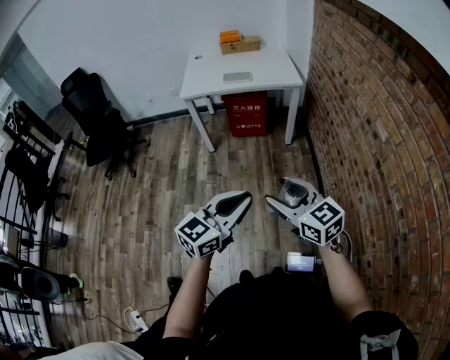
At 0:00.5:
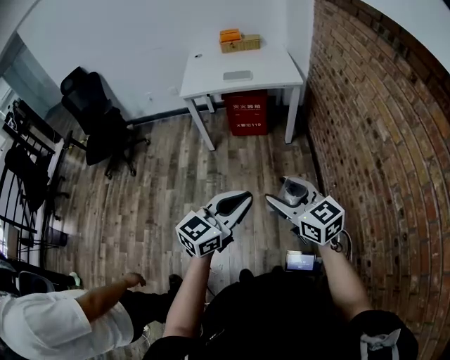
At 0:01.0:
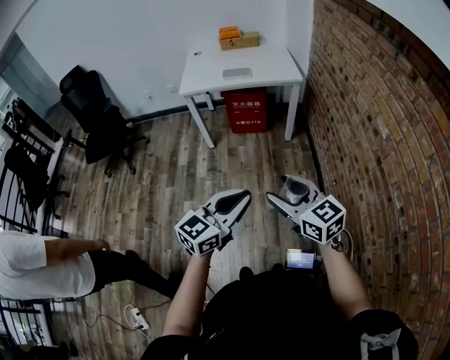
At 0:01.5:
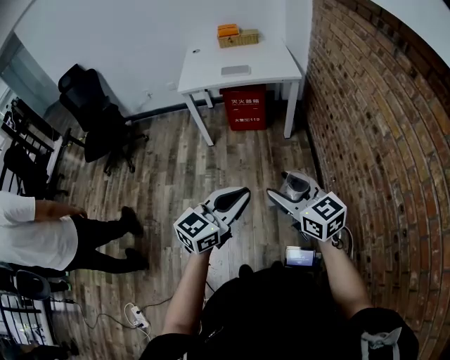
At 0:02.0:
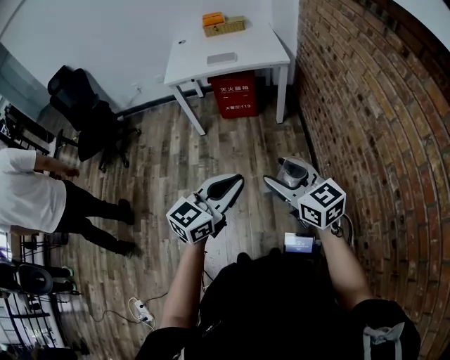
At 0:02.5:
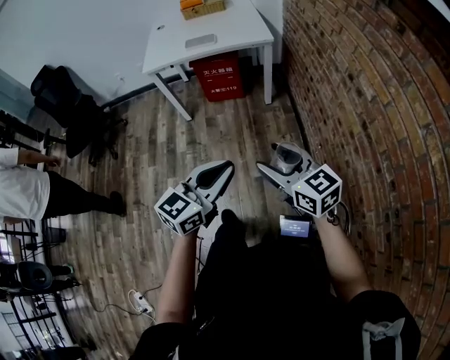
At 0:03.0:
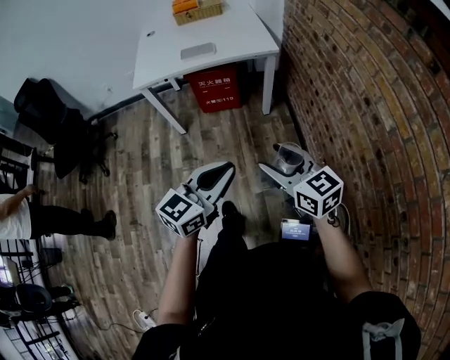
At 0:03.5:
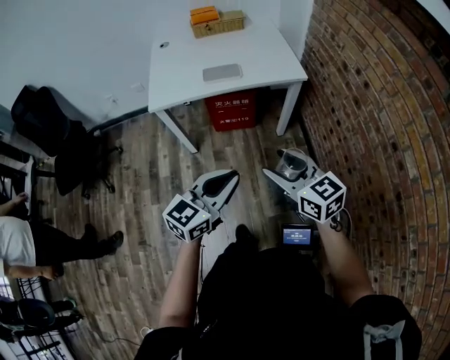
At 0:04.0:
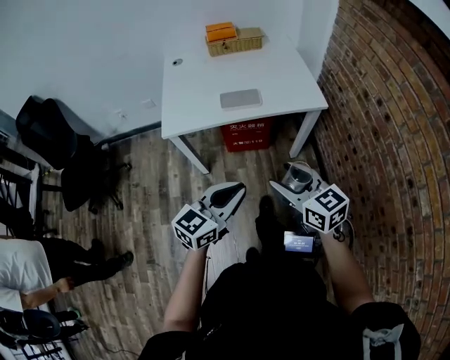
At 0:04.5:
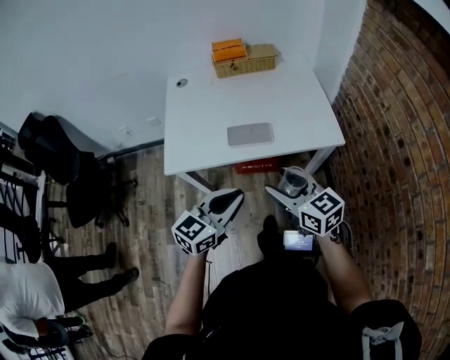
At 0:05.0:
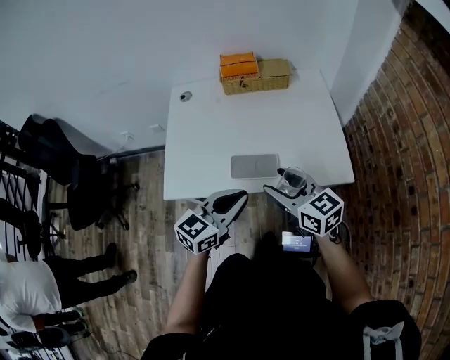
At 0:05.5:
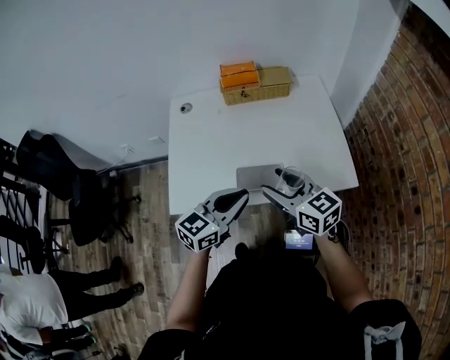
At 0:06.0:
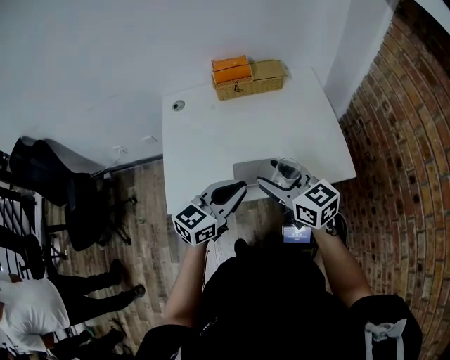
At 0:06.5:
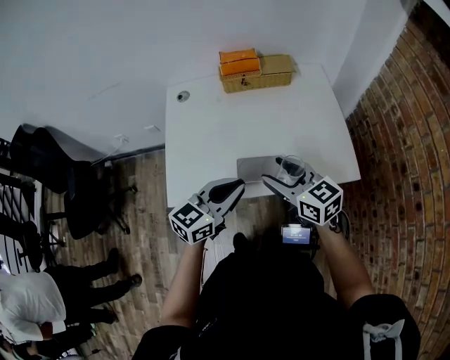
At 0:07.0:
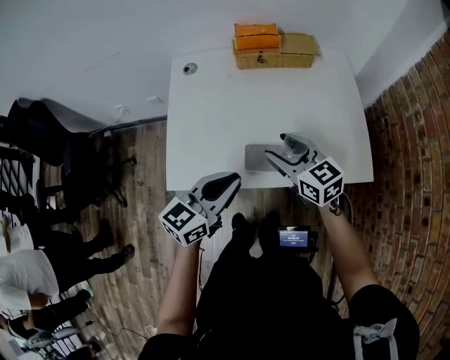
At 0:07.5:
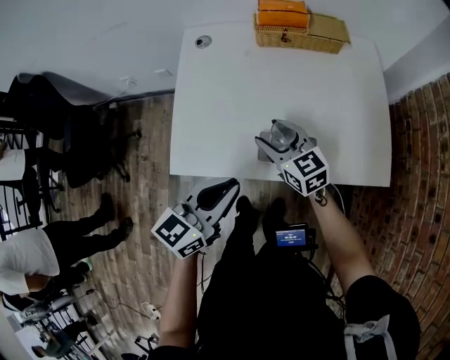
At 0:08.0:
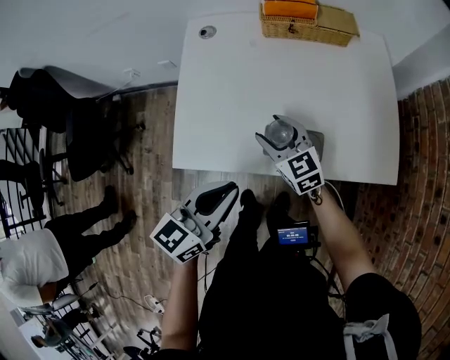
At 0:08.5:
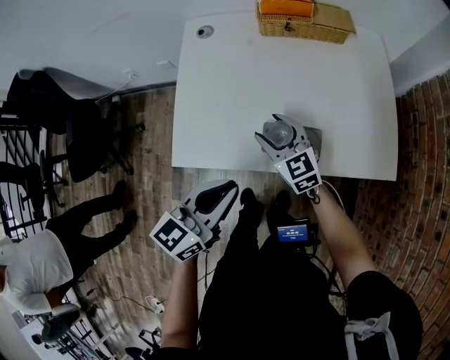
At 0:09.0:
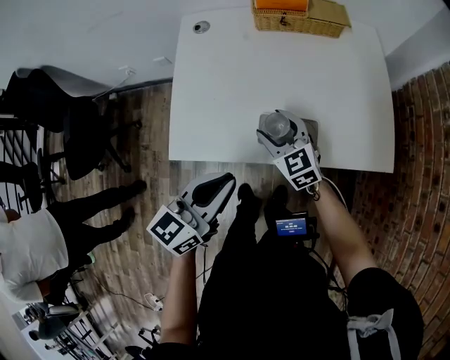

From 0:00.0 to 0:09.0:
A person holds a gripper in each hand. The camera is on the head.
From 0:00.0 to 0:02.0: There are only small adjustments of the grippers.
From 0:02.0 to 0:04.5: The two grippers travel together, forward, about 60 cm.
From 0:04.5 to 0:07.0: Both grippers travel together forward, roughly 20 cm.
From 0:07.0 to 0:09.0: The left gripper ends up some 5 cm from where it was; the right gripper travels downward and to the left by roughly 10 cm, and rotates some 20 degrees.

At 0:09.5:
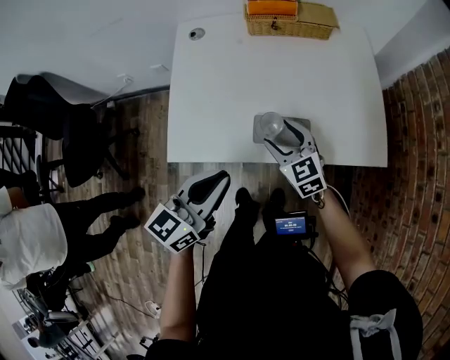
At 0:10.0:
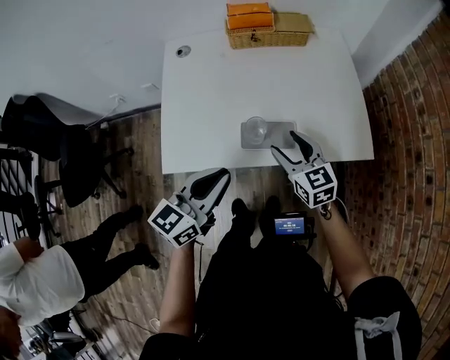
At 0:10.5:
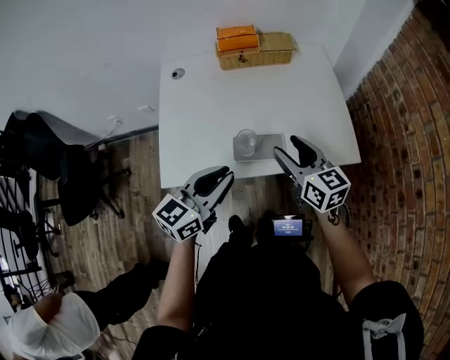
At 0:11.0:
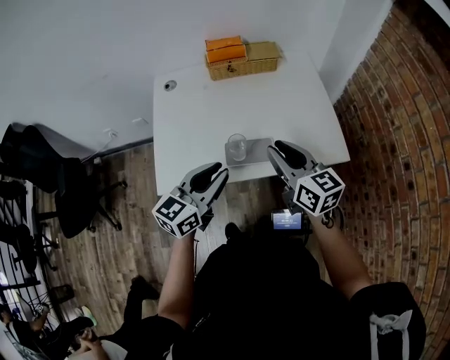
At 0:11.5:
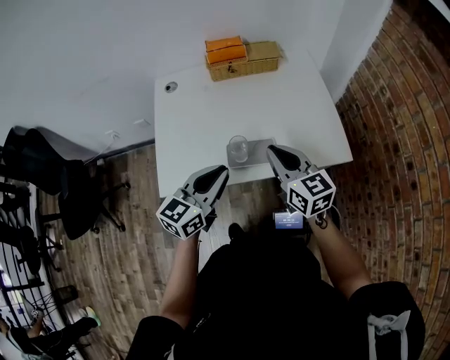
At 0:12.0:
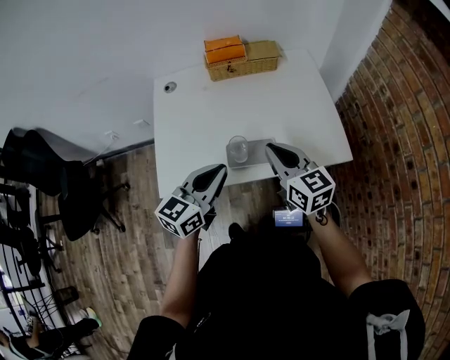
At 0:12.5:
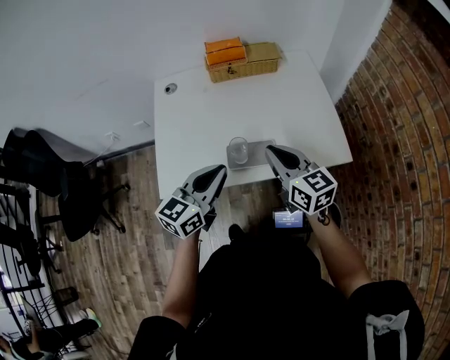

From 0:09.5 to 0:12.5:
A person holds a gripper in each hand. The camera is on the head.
From 0:09.5 to 0:11.0: The right gripper moves upward and to the right, some 20 cm, swivels roughly 30 degrees, and closes up. The left gripper moves some 5 cm.
From 0:11.0 to 0:12.5: The right gripper closes.

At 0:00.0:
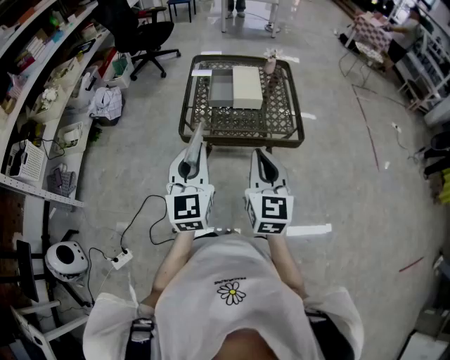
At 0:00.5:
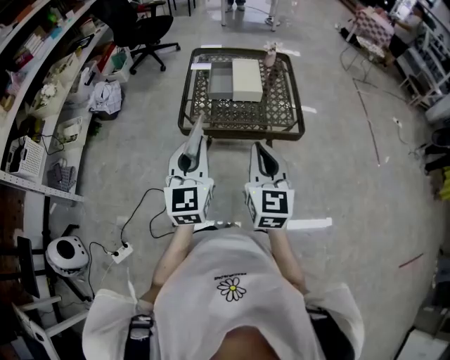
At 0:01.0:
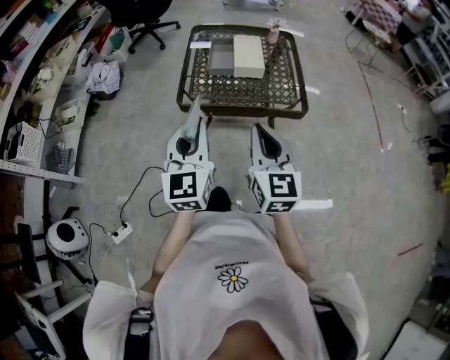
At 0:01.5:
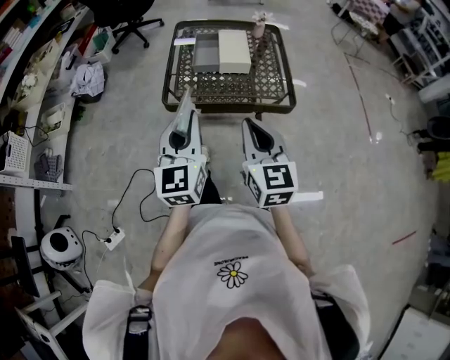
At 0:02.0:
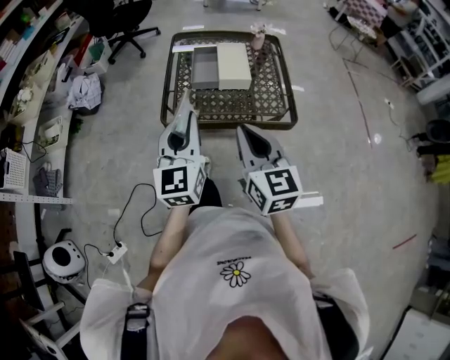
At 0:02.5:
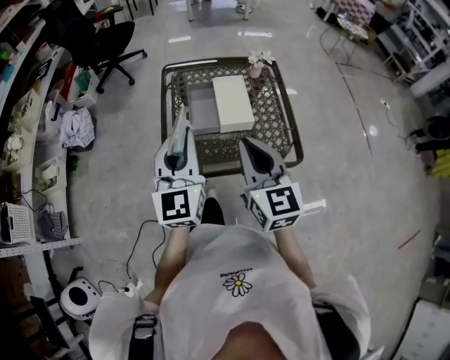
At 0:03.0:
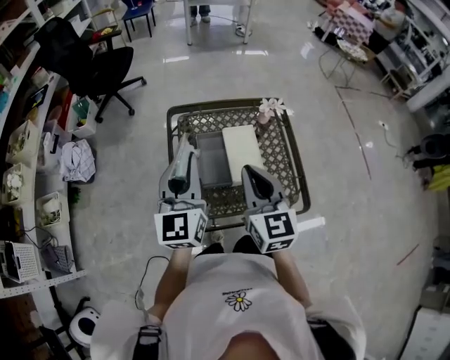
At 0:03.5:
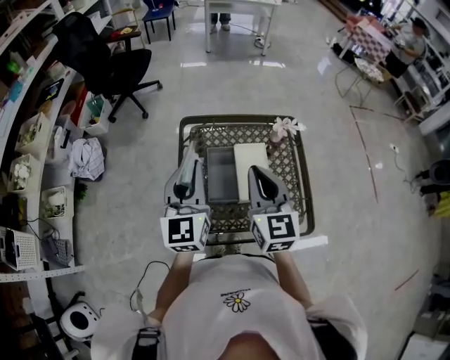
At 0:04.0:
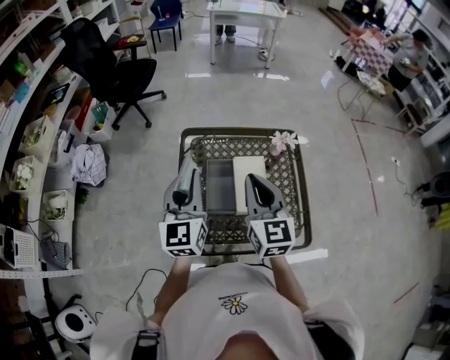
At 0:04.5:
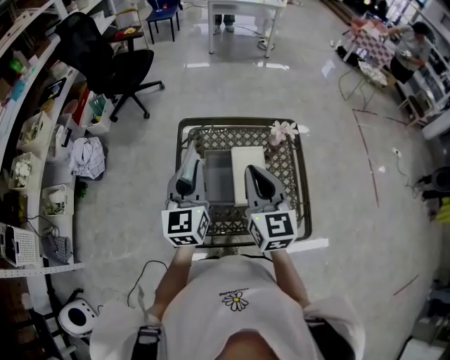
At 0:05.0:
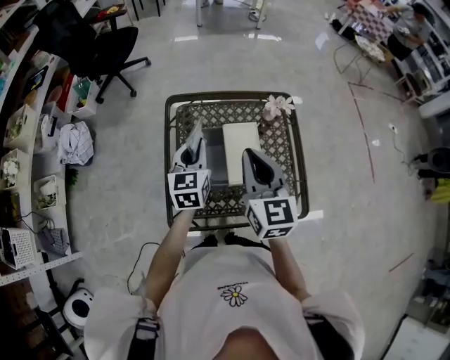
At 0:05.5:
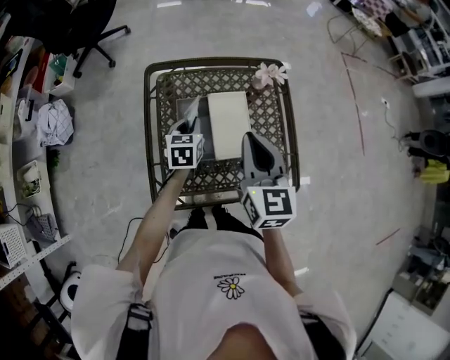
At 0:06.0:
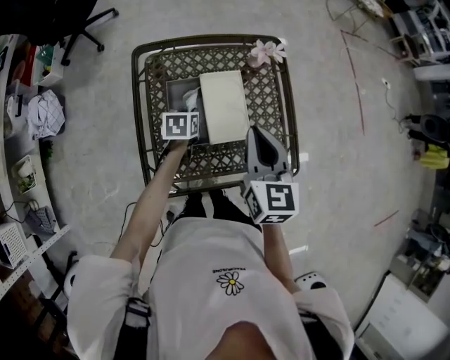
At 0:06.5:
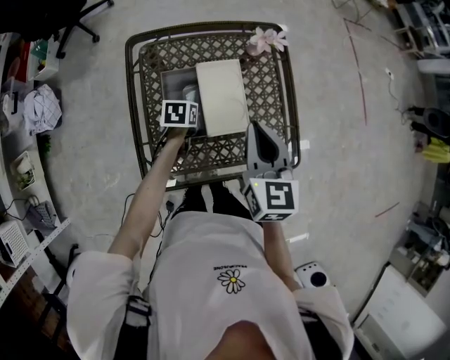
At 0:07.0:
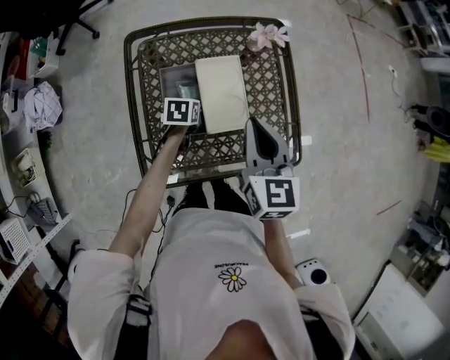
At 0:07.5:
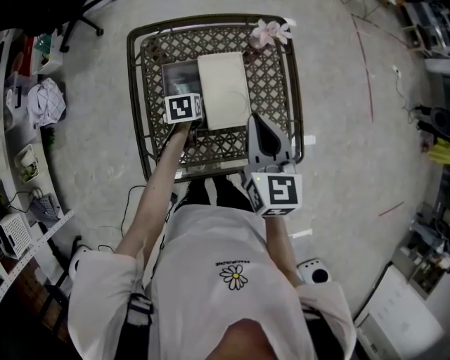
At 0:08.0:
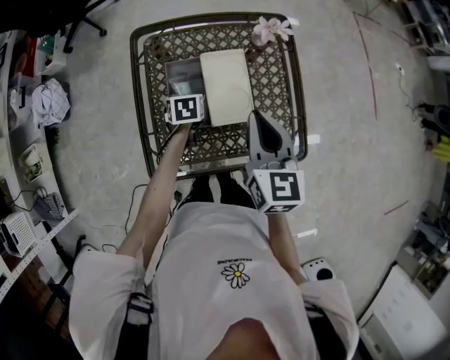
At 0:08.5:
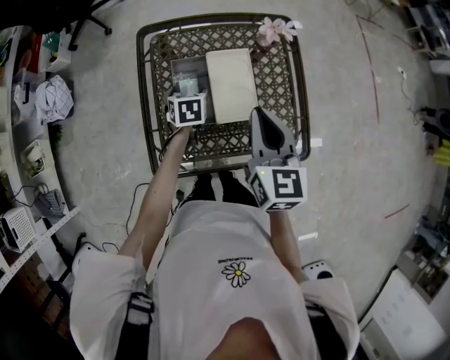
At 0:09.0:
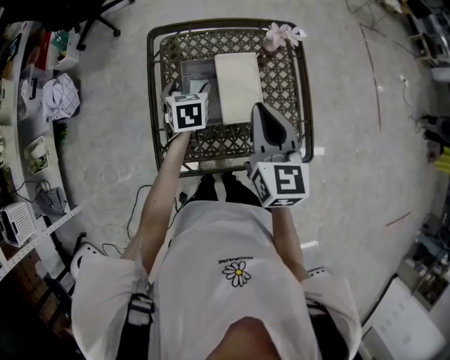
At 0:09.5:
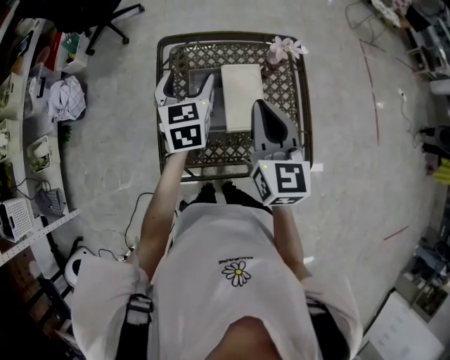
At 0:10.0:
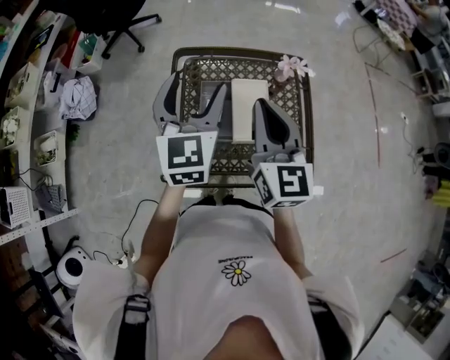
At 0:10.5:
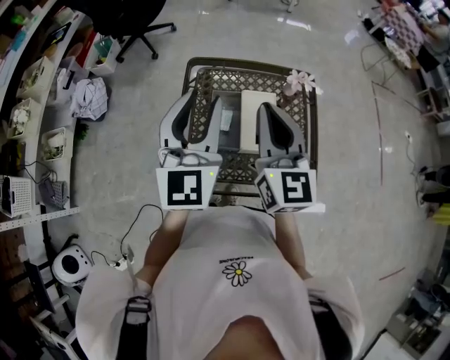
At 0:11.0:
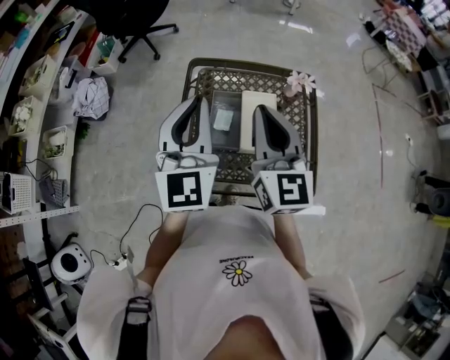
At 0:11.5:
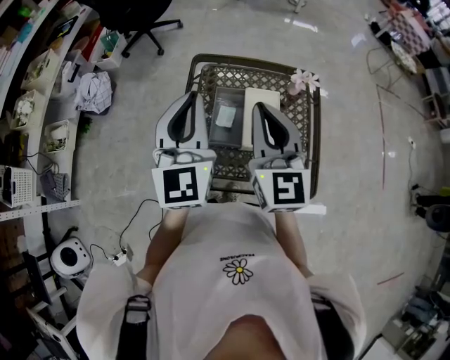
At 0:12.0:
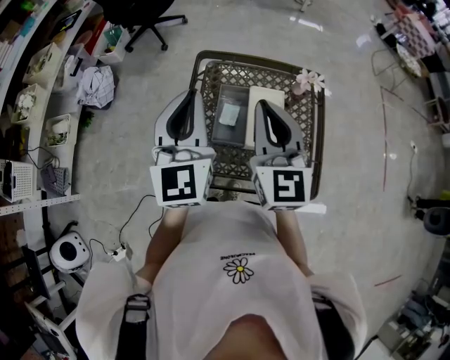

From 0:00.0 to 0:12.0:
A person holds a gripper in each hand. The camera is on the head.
From 0:00.0 to 0:02.0: Both grippers move forward, about 5 cm.
From 0:02.0 to 0:04.0: The grippers both shift forward by about 35 cm.
From 0:04.0 to 0:06.0: The left gripper shifts about 35 cm downward, and tilts its fingers some 50 degrees downward; the right gripper goes some 10 cm downward and to the right.
From 0:06.0 to 0:08.0: The left gripper opens up.
From 0:08.0 to 0:10.0: The left gripper goes approximately 40 cm upward, and angles its fingers upward, by some 50 degrees. Meanwhile the right gripper travels upward and to the left by approximately 15 cm, and turns by about 20 degrees.
From 0:10.0 to 0:12.0: The left gripper moves to the left and backward, approximately 10 cm, and closes its fingers.

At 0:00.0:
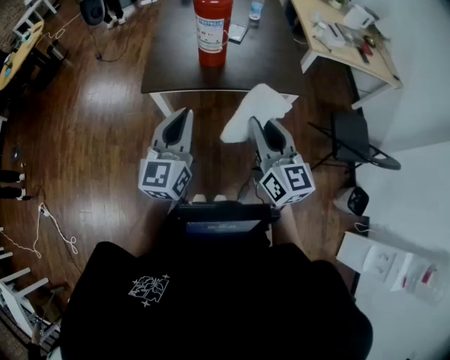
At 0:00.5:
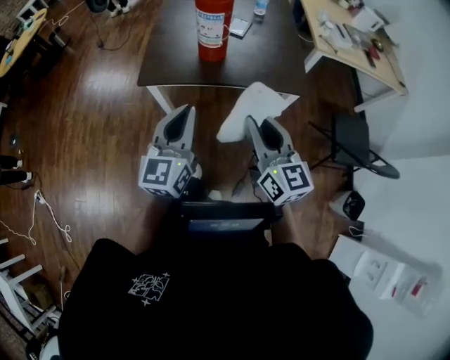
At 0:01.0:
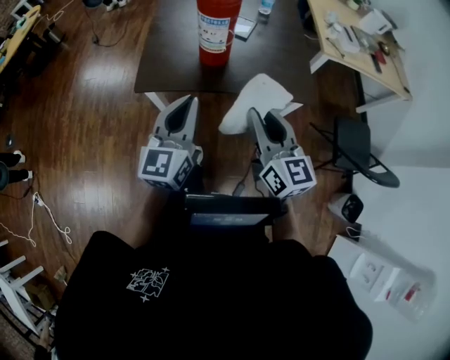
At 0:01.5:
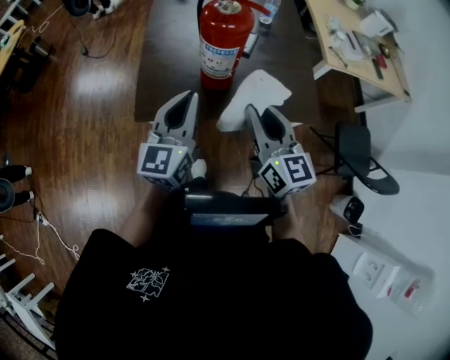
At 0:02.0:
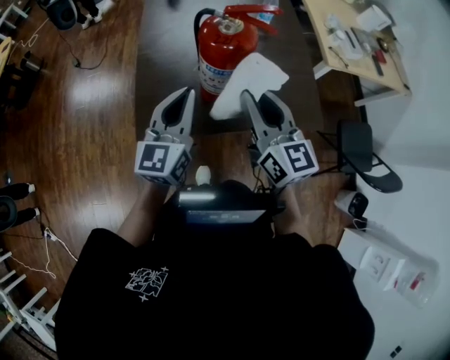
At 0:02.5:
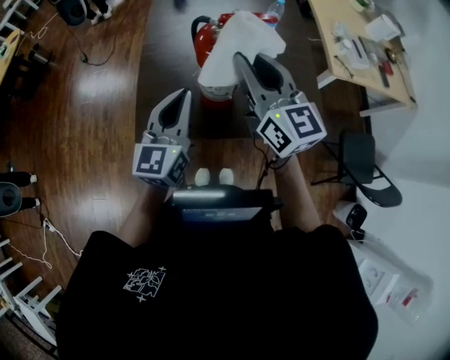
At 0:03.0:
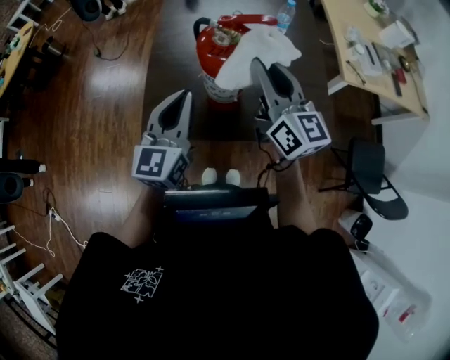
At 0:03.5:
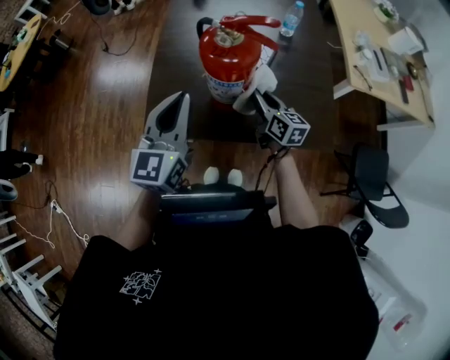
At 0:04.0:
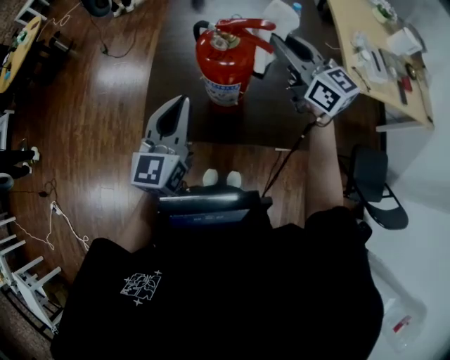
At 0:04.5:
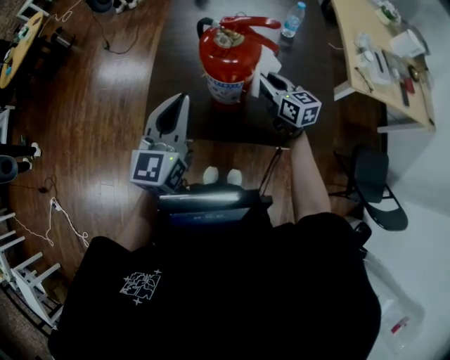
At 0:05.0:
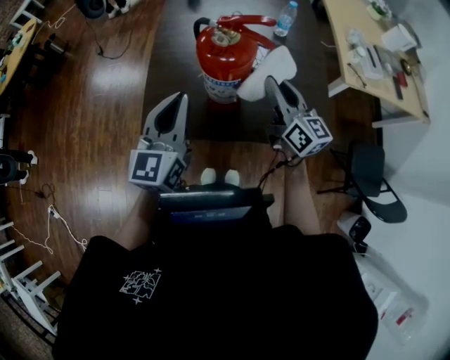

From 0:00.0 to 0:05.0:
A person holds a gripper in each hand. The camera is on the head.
From 0:00.0 to 0:02.5: The two grippers go some 35 cm forward.
From 0:02.5 to 0:05.0: The right gripper goes up and down, some 25 cm each way, reversing 3 times.
